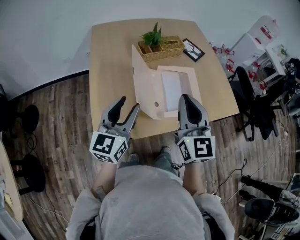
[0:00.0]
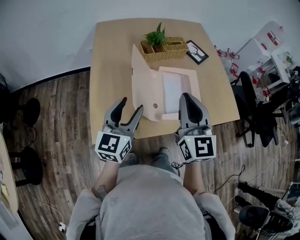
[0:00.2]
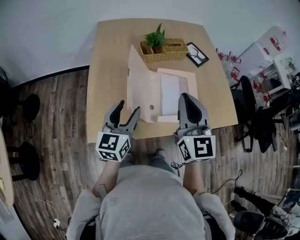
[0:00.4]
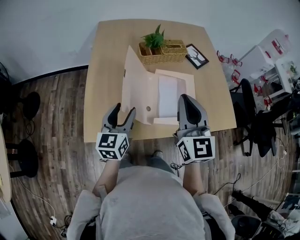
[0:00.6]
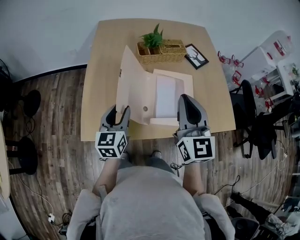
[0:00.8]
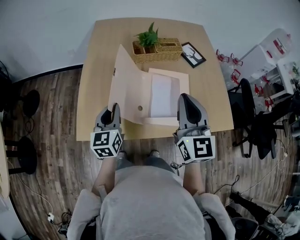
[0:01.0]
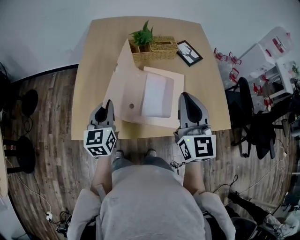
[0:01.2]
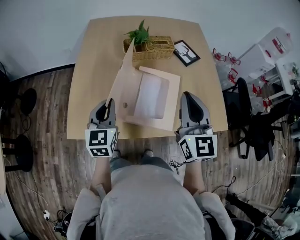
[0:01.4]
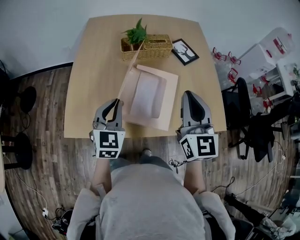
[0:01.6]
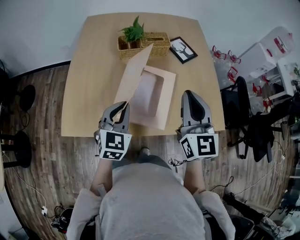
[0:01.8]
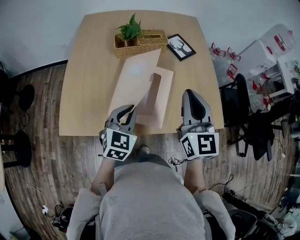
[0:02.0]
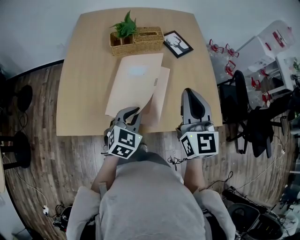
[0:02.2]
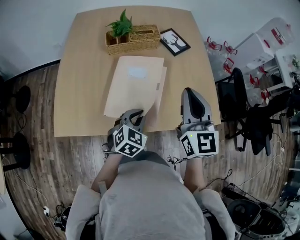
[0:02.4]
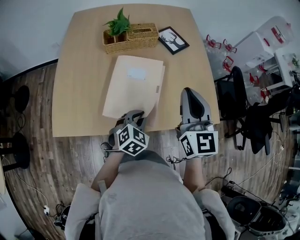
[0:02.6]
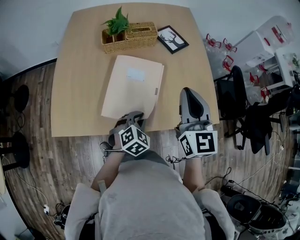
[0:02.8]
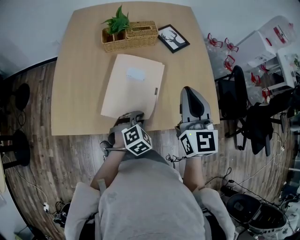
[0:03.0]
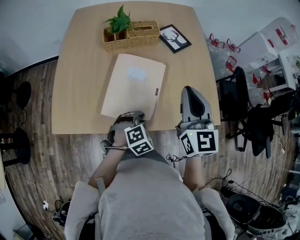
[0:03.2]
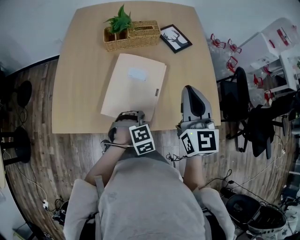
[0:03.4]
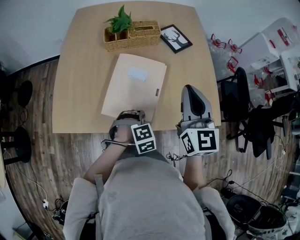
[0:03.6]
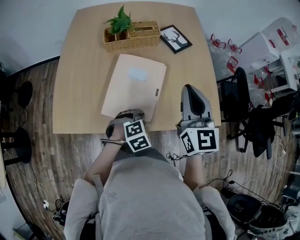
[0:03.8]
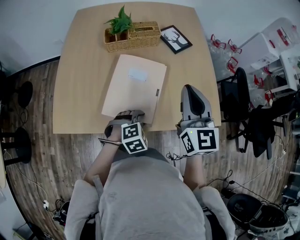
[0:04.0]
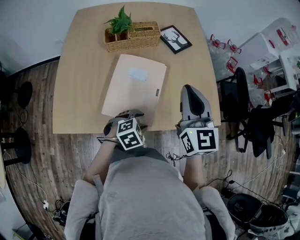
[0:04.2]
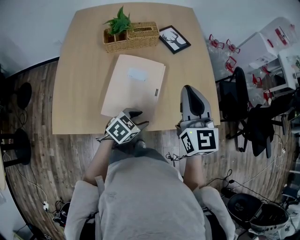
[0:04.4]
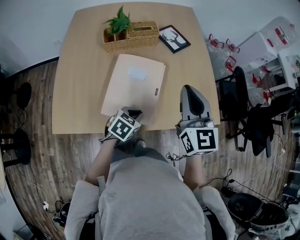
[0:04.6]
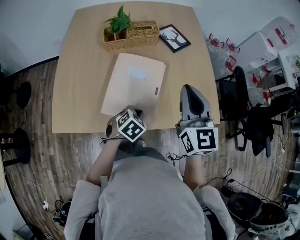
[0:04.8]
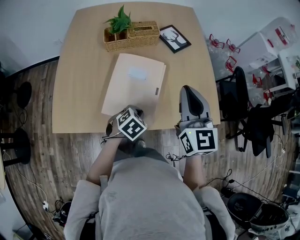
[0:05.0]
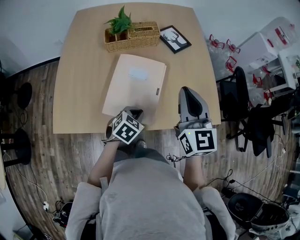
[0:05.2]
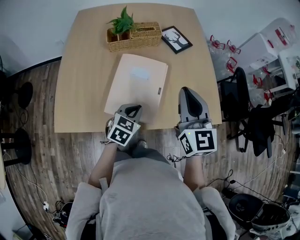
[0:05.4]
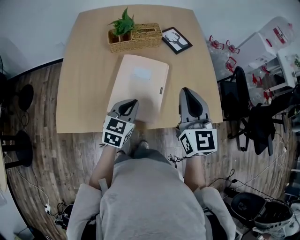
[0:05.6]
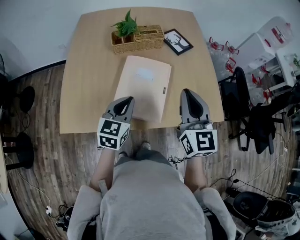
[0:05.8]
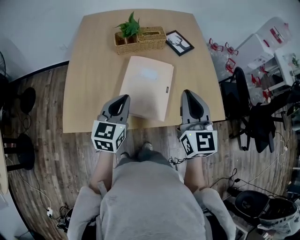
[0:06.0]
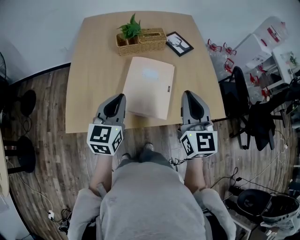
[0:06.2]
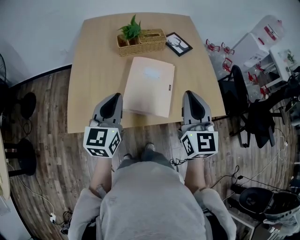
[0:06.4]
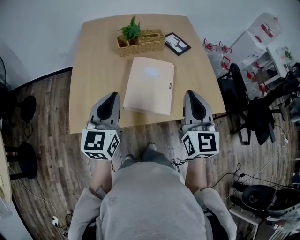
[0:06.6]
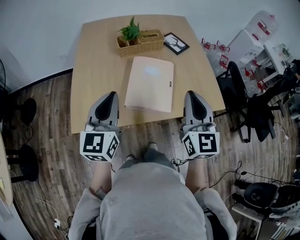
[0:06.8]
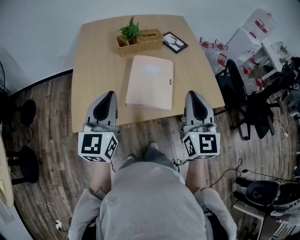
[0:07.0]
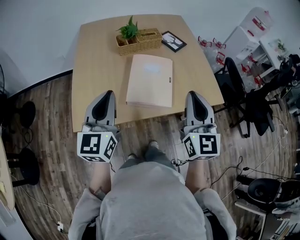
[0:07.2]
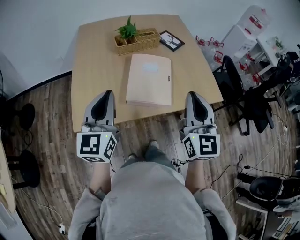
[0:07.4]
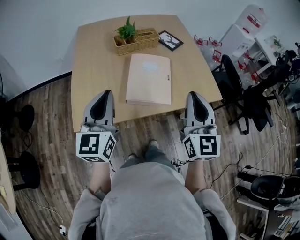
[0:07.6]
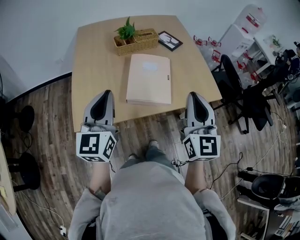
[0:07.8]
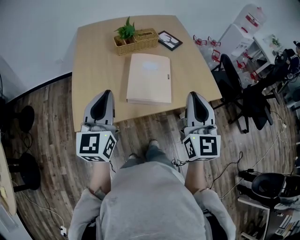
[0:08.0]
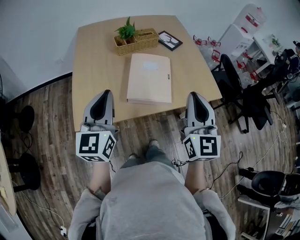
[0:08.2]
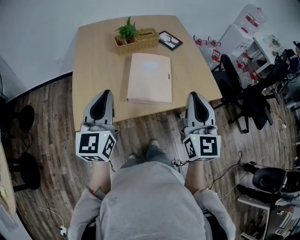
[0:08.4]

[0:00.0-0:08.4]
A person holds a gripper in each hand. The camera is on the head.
0:00.0 to 0:01.4: The right gripper moves to the right, some 15 cm. Meanwhile the left gripper heads to the right and downward, covering about 10 cm, changes its angle by some 30 degrees, and closes.
0:01.4 to 0:02.8: The right gripper travels to the right by approximately 10 cm, while the left gripper heads to the right and downward, covering approximately 30 cm, and tilts its fingers approximately 30 degrees downward.
0:02.8 to 0:04.2: The left gripper swivels approximately 20 degrees, and opens its fingers.
0:04.2 to 0:05.6: The left gripper is displaced upward and to the left by roughly 15 cm, angles its fingers upward, by approximately 30 degrees, and closes up.
0:05.6 to 0:07.0: The right gripper travels backward, to the left and upward by roughly 15 cm; the left gripper travels upward, to the left and backward by some 25 cm, and changes its angle by about 30 degrees.
0:07.0 to 0:08.4: The right gripper goes approximately 5 cm backward.

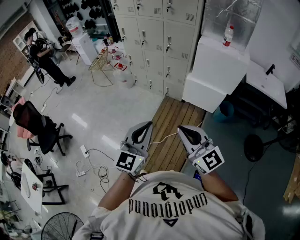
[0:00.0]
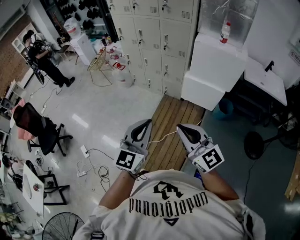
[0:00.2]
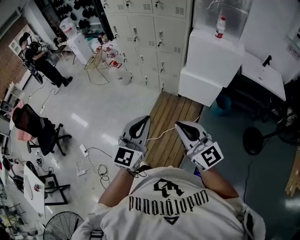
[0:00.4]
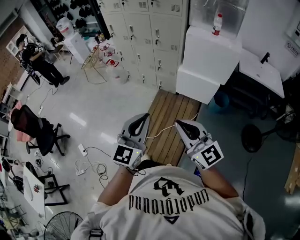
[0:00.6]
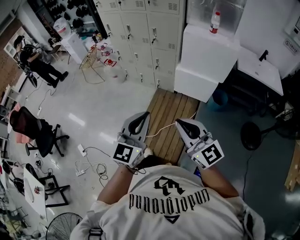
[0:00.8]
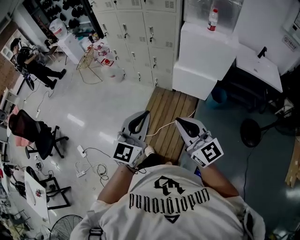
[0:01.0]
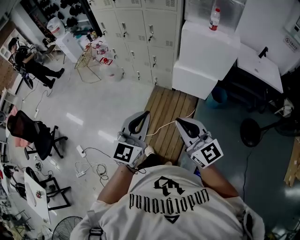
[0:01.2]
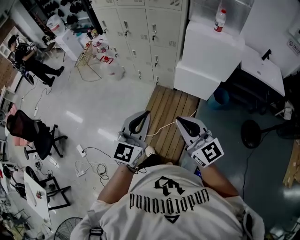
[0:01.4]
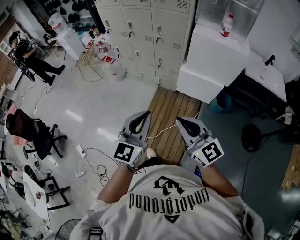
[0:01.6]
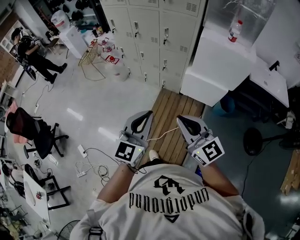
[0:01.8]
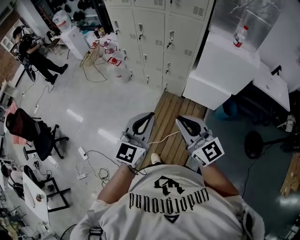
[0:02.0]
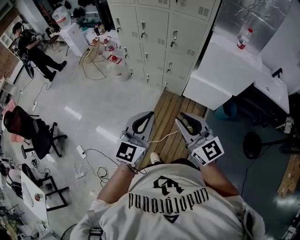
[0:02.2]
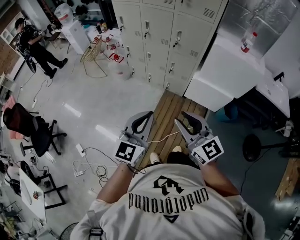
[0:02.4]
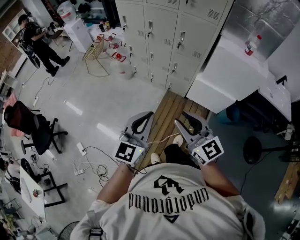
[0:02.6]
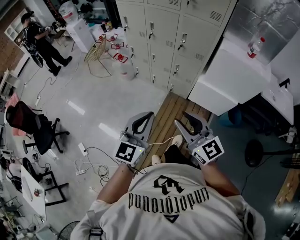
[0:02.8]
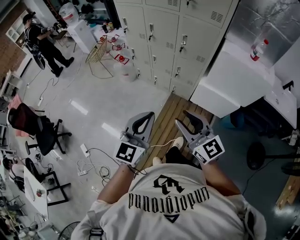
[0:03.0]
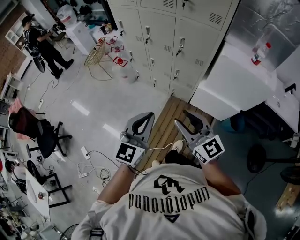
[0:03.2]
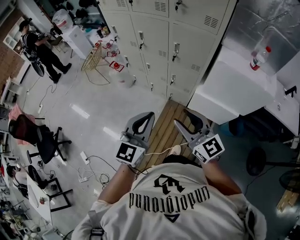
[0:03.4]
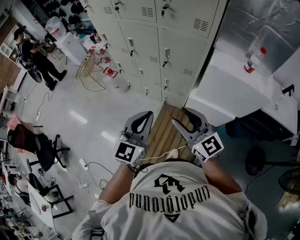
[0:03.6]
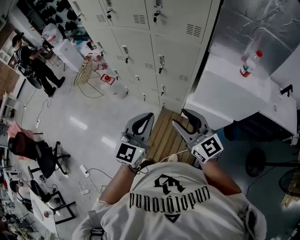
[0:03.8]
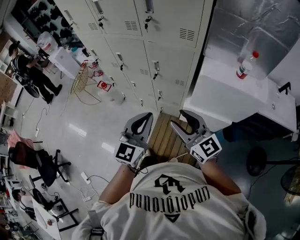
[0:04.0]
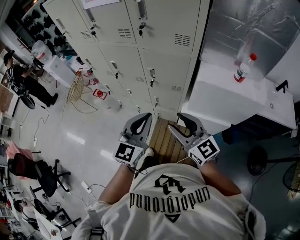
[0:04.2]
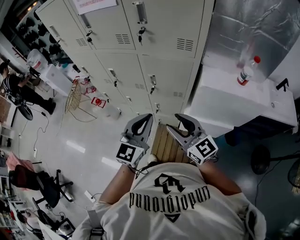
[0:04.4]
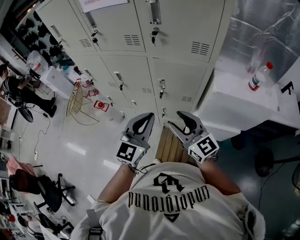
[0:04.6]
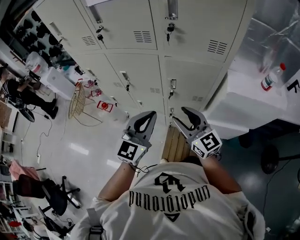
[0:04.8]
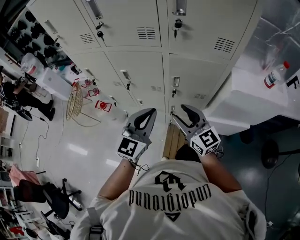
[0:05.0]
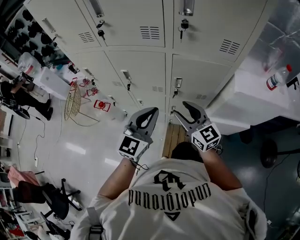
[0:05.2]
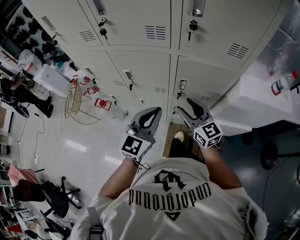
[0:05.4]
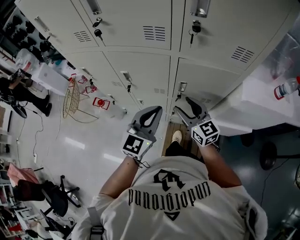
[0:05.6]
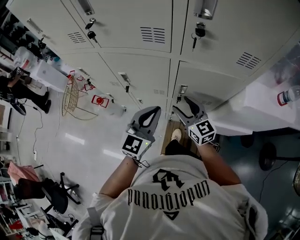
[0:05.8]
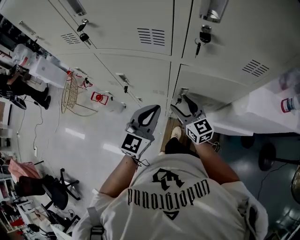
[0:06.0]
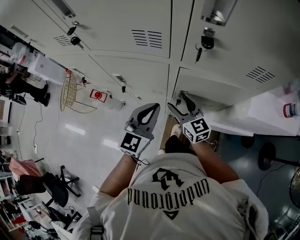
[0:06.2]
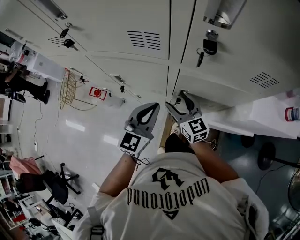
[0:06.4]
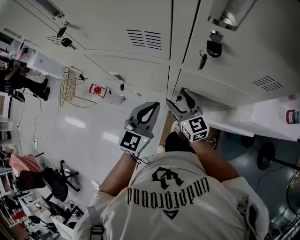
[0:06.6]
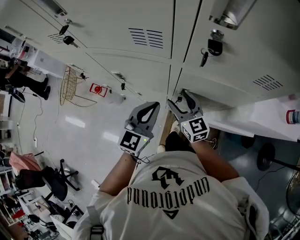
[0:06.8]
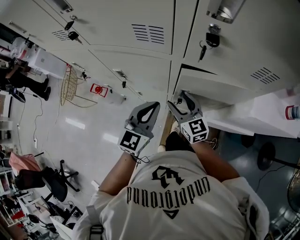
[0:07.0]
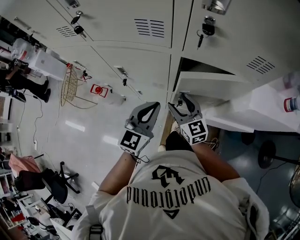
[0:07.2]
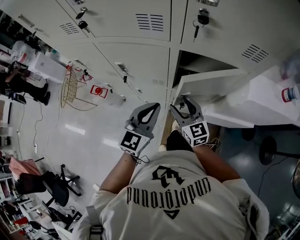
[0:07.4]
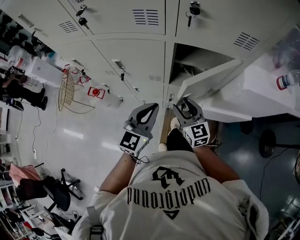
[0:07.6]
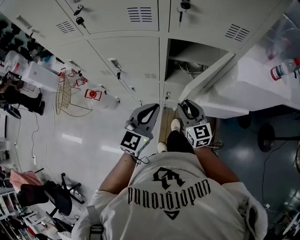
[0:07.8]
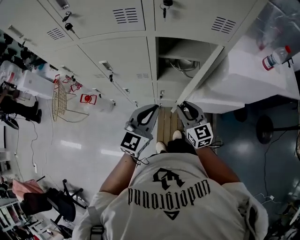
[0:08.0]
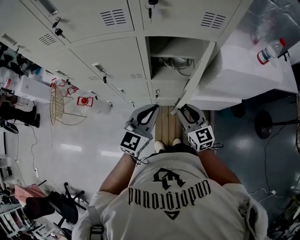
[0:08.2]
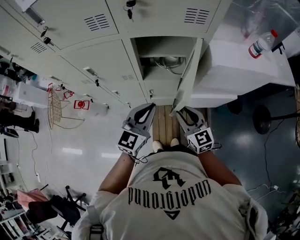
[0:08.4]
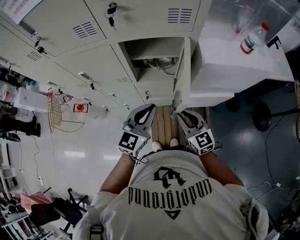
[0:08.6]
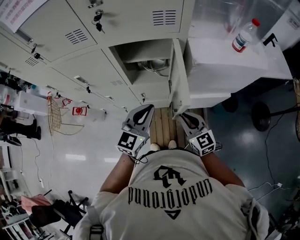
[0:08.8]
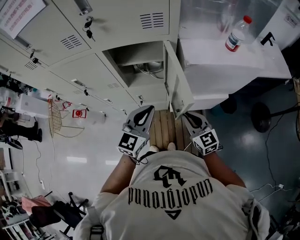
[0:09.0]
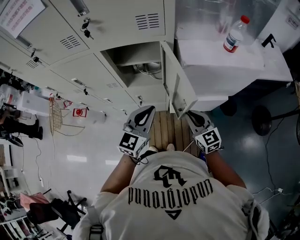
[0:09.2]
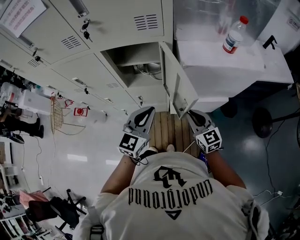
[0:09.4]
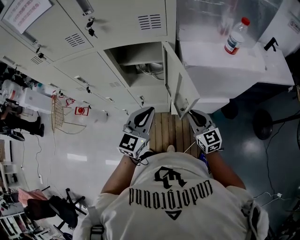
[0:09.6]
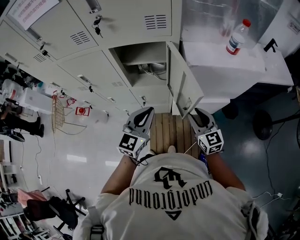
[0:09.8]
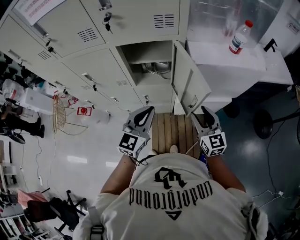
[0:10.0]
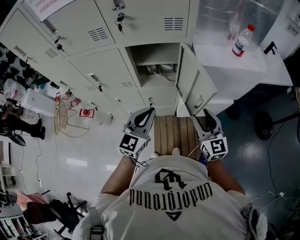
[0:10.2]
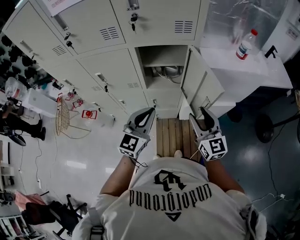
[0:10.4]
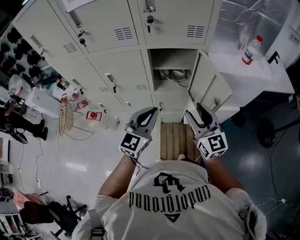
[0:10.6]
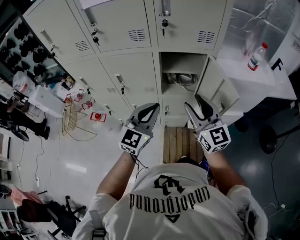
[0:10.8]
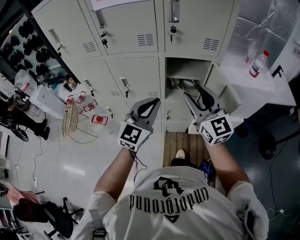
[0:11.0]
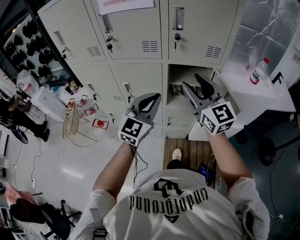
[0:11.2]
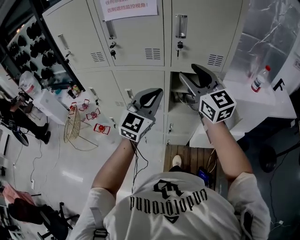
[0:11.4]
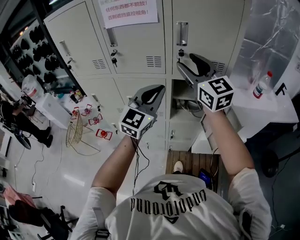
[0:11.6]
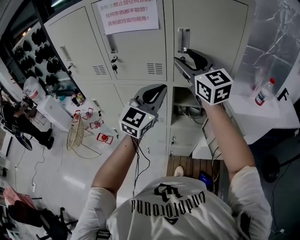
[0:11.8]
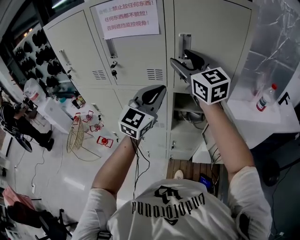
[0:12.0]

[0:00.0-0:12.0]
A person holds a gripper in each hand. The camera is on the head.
0:00.0 to 0:01.6: Both grippers move forward, some 15 cm.
0:01.6 to 0:03.0: Both grippers travel together forward and to the left, about 20 cm. The right gripper opens its fingers.
0:03.0 to 0:04.4: Both grippers travel together forward and to the right, some 35 cm.
0:04.4 to 0:06.0: The right gripper travels forward, downward and to the left by some 35 cm; the left gripper goes approximately 30 cm forward, to the left and downward.
0:06.0 to 0:07.6: The grippers both shift backward by roughly 10 cm.
0:07.6 to 0:09.0: Both grippers move to the right, approximately 25 cm. The right gripper closes its fingers.
0:09.0 to 0:10.4: The left gripper shifts some 10 cm to the left and backward; the right gripper moves upward and to the left, about 15 cm, and opens up.
0:10.4 to 0:12.0: The left gripper travels upward, forward and to the left by approximately 30 cm; the right gripper moves upward, to the left and forward, about 50 cm, and changes its angle by roughly 20 degrees.

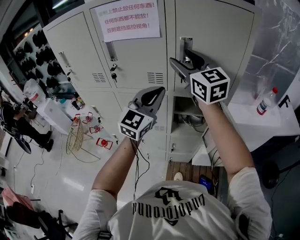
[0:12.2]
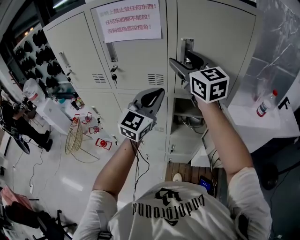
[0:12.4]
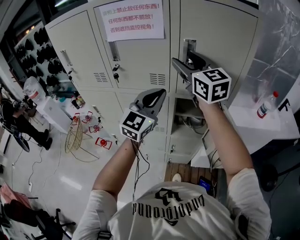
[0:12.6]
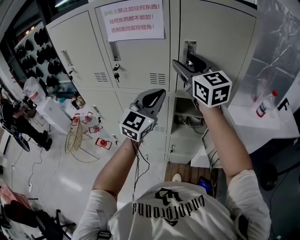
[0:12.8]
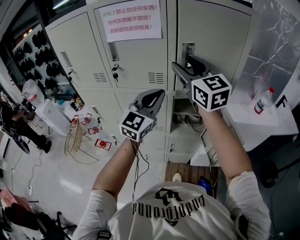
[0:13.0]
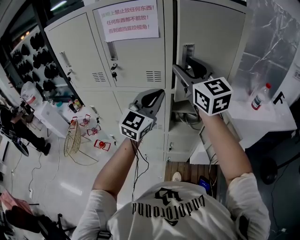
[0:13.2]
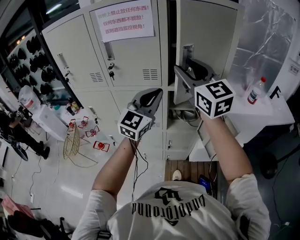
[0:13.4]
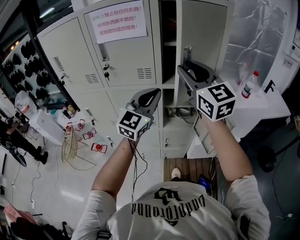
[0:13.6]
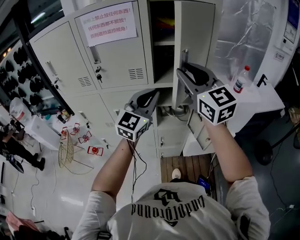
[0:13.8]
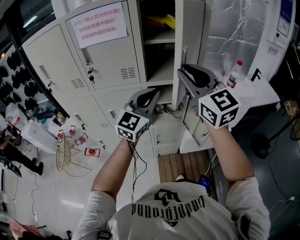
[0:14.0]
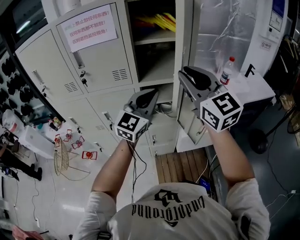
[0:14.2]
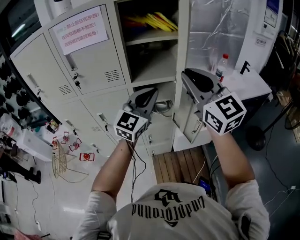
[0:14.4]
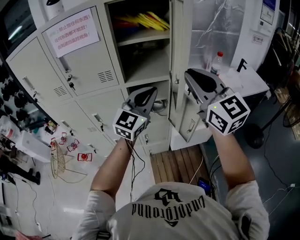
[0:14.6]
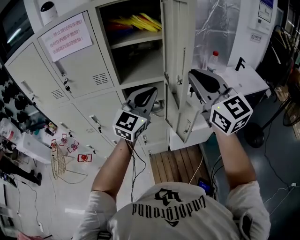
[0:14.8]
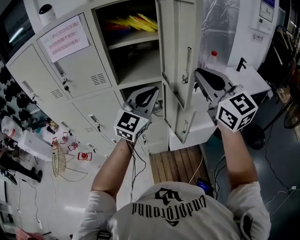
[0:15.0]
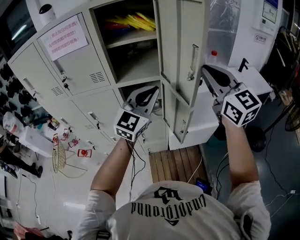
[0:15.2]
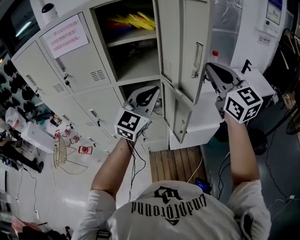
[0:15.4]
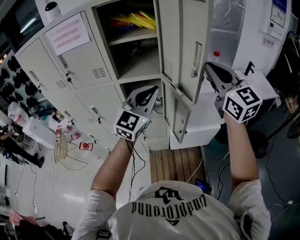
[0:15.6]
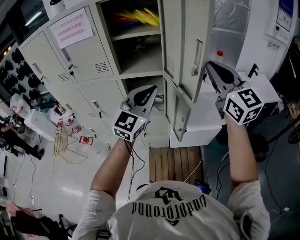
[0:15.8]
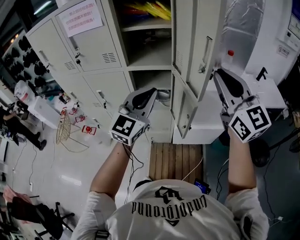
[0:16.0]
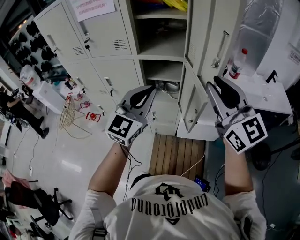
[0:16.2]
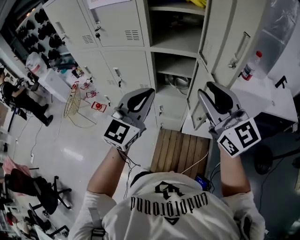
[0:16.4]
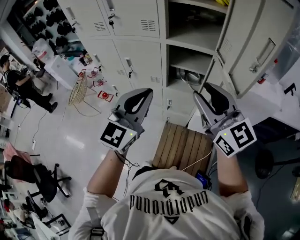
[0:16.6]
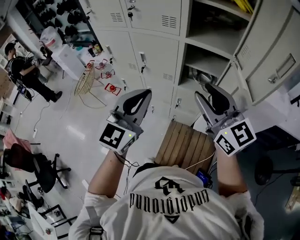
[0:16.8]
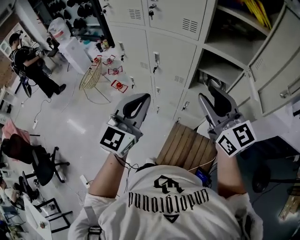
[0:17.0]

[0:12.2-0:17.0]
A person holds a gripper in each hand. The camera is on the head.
0:12.2 to 0:13.8: The left gripper travels backward by about 5 cm. Meanwhile the right gripper travels backward and to the right by some 15 cm, and closes its fingers.
0:13.8 to 0:15.4: Both grippers move to the right, roughly 25 cm. The right gripper closes up.
0:15.4 to 0:17.0: The left gripper shifts by some 35 cm, and changes its angle by roughly 40 degrees, while the right gripper shifts by approximately 35 cm, changes its angle by roughly 40 degrees, and opens up.
